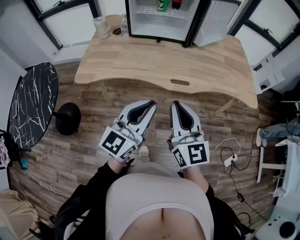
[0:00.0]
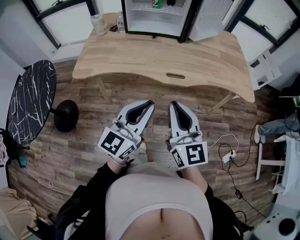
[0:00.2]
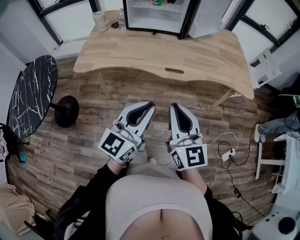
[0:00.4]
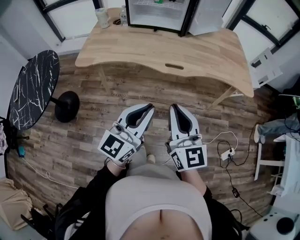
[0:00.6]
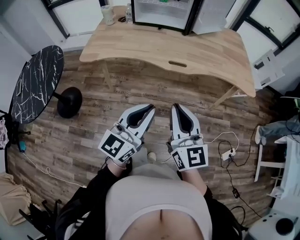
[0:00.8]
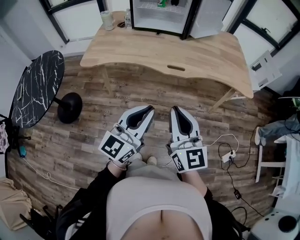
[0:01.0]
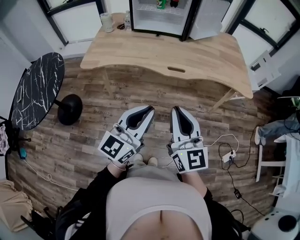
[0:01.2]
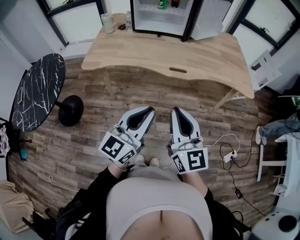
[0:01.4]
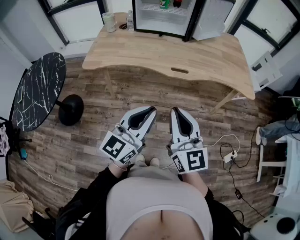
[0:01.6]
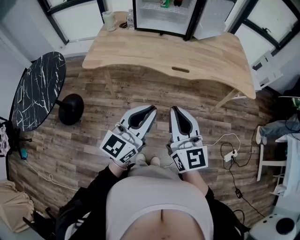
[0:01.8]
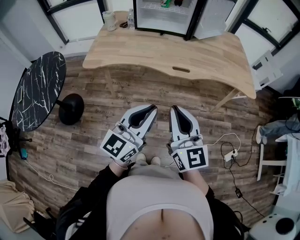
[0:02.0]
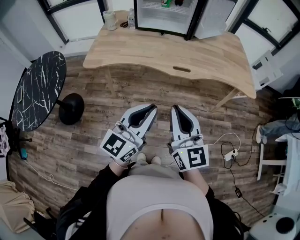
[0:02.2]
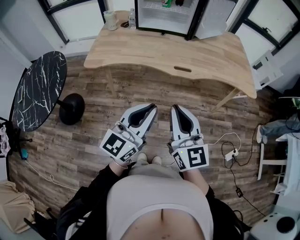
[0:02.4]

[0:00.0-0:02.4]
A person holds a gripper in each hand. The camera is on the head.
0:00.0 to 0:01.2: The grippers both shift backward by roughly 15 cm.
0:01.2 to 0:02.4: There are only small adjustments of the grippers.

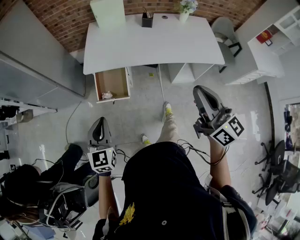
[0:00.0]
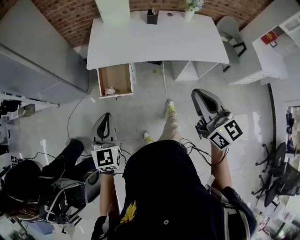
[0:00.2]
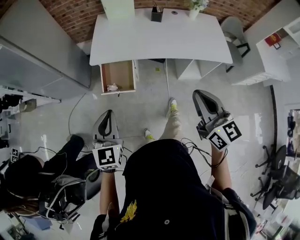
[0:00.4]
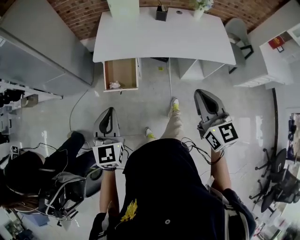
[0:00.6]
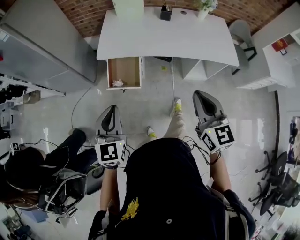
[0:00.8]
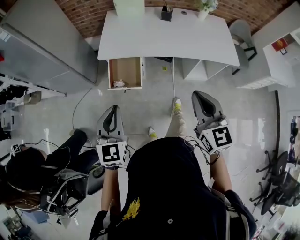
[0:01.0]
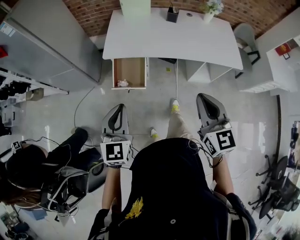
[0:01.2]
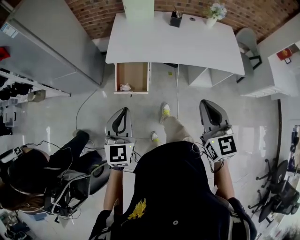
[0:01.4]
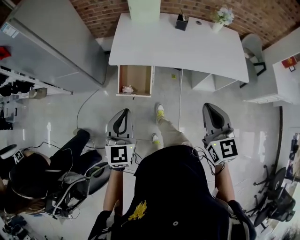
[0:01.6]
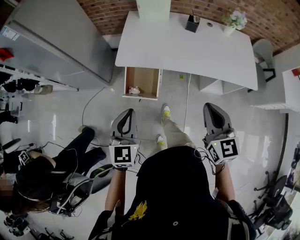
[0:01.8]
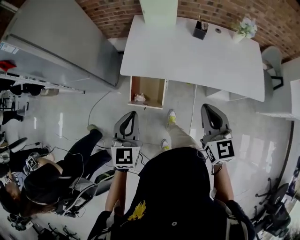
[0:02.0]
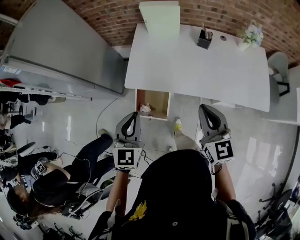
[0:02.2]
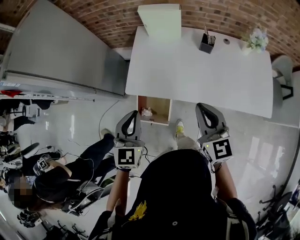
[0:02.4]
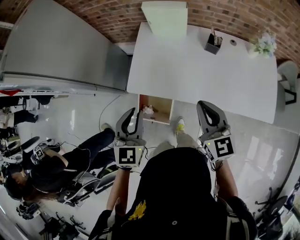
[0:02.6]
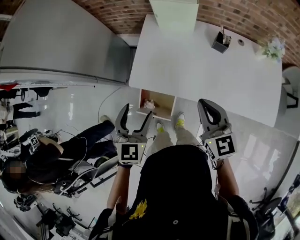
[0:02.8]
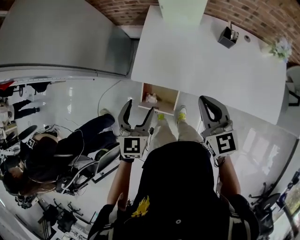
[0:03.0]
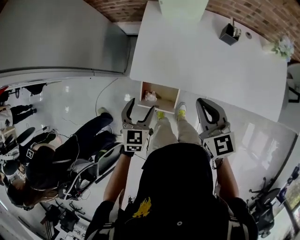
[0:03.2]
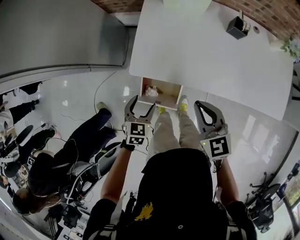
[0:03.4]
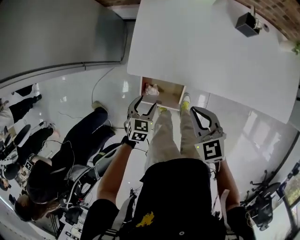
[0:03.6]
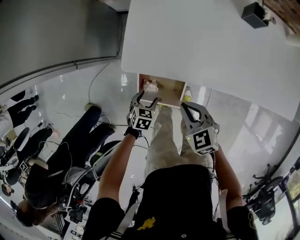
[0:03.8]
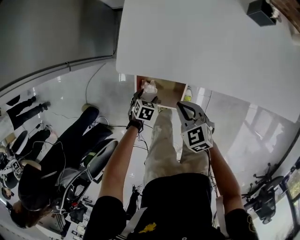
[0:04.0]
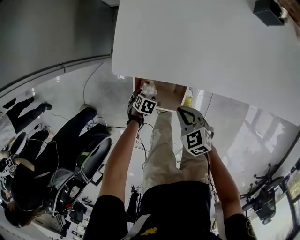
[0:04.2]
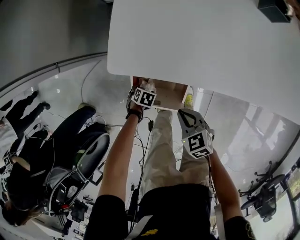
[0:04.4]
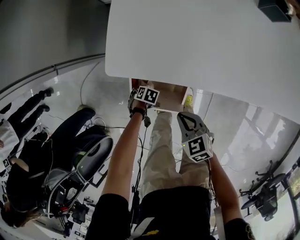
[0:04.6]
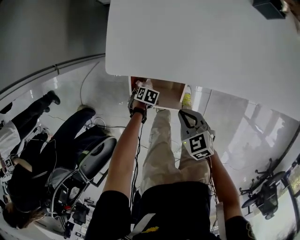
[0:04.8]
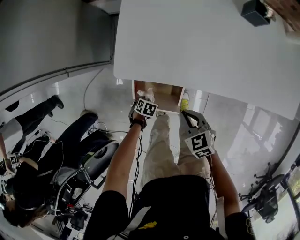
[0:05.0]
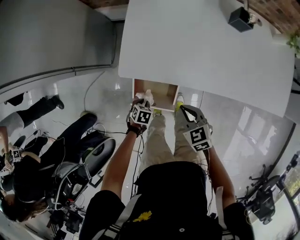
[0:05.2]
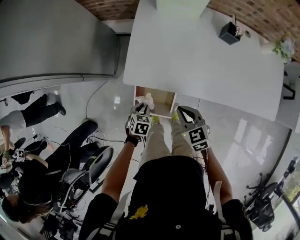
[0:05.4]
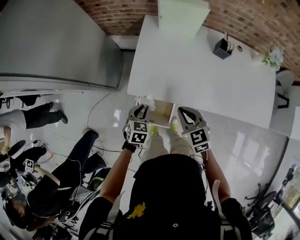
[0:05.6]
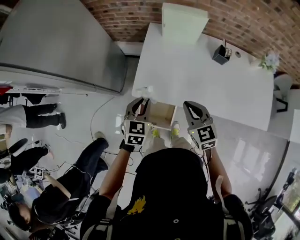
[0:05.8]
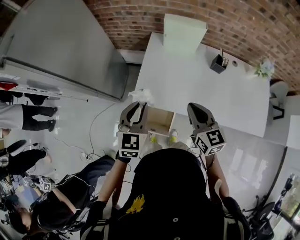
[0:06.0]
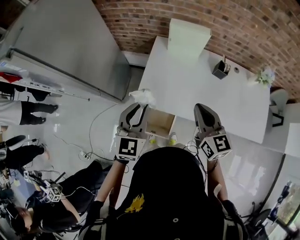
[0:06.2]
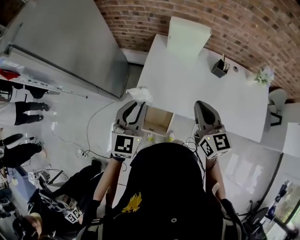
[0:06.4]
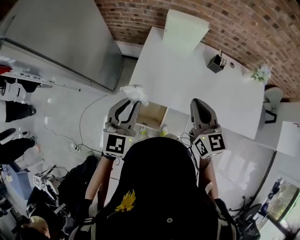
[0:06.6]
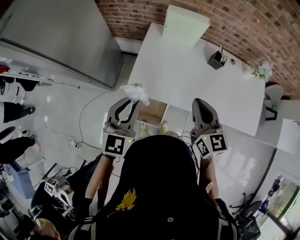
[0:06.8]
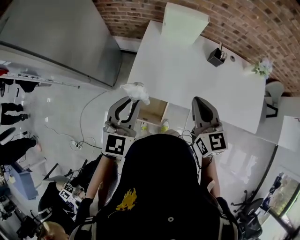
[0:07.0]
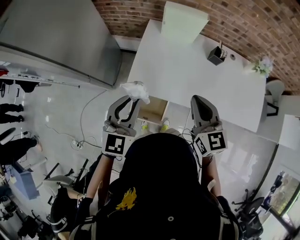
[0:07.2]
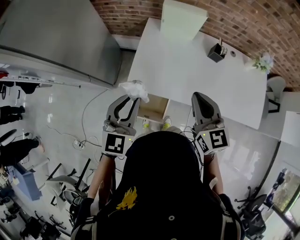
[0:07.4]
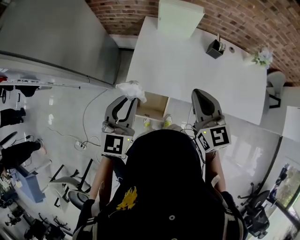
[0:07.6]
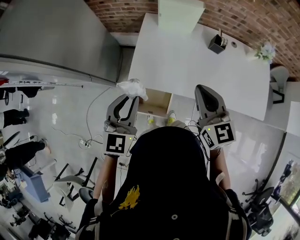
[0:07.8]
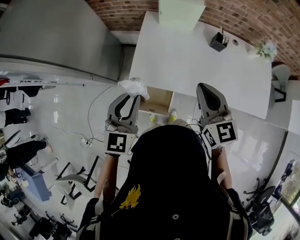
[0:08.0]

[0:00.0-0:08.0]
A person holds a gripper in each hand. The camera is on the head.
0:00.0 to 0:01.6: The right gripper moves downward, some 5 cm, and turns by some 30 degrees.
0:01.6 to 0:03.2: The right gripper heads forward, covering roughly 35 cm, and changes its angle by approximately 20 degrees. Meanwhile the left gripper moves forward and downward, approximately 30 cm, changes its angle by roughly 20 degrees, and opens up.
0:03.2 to 0:04.8: The grippers both shift downward by some 50 cm. The right gripper rotates approximately 30 degrees, while the left gripper points its fingers approximately 50 degrees further downward, and closes its fingers.
0:04.8 to 0:06.4: The left gripper travels upward by some 70 cm, and angles its fingers upward, by approximately 70 degrees, while the right gripper heads upward, covering approximately 40 cm, and angles its fingers upward, by about 40 degrees.
0:06.4 to 0:08.0: The grippers move only a little.

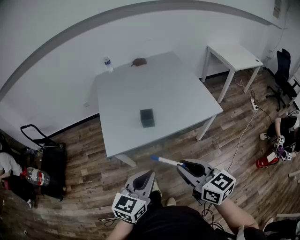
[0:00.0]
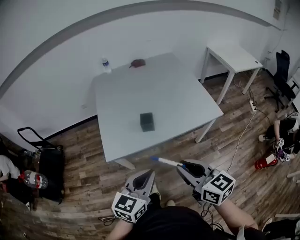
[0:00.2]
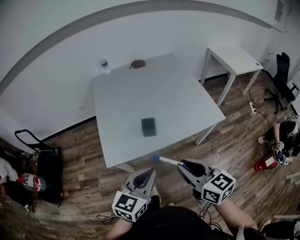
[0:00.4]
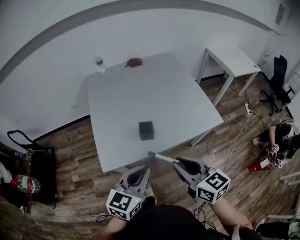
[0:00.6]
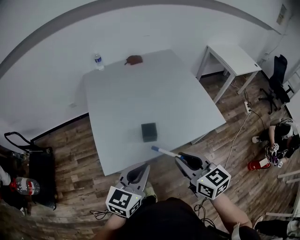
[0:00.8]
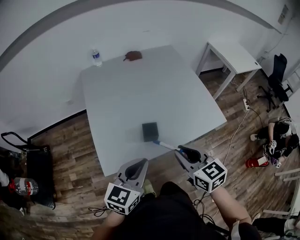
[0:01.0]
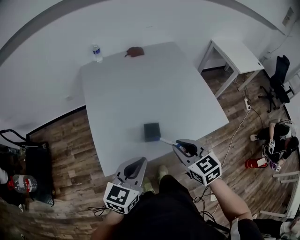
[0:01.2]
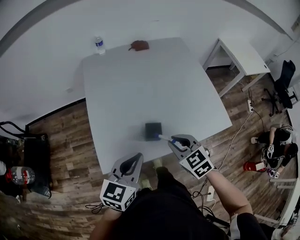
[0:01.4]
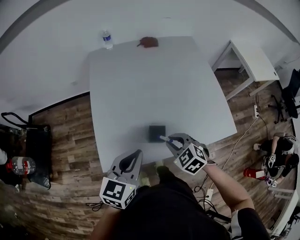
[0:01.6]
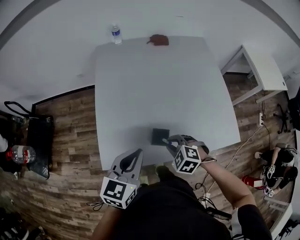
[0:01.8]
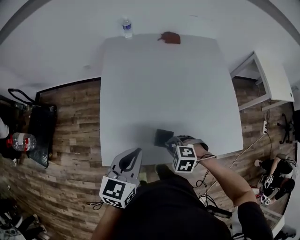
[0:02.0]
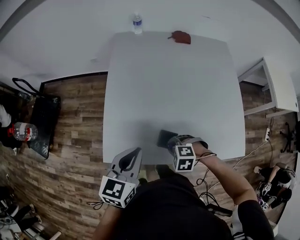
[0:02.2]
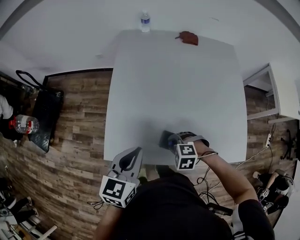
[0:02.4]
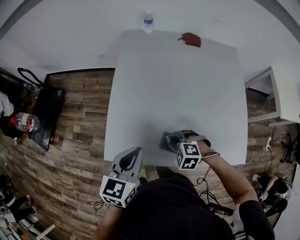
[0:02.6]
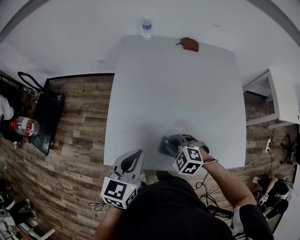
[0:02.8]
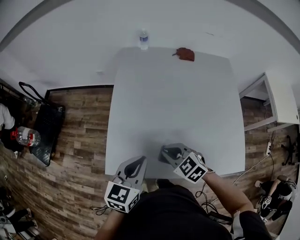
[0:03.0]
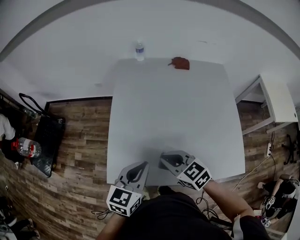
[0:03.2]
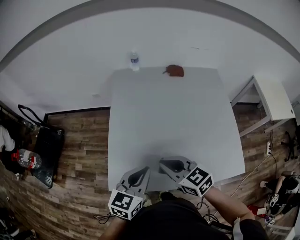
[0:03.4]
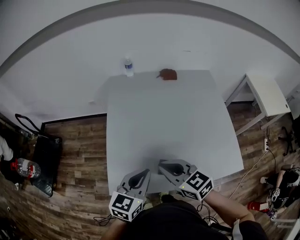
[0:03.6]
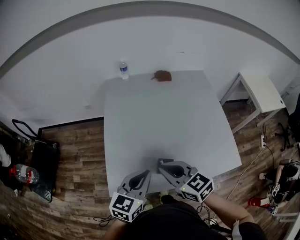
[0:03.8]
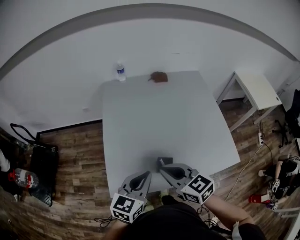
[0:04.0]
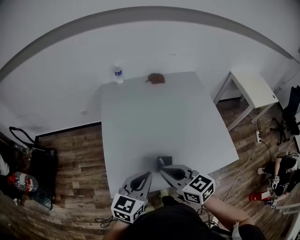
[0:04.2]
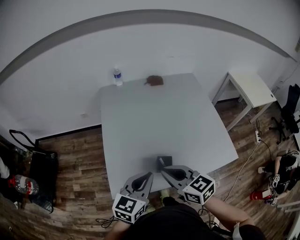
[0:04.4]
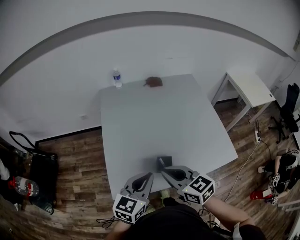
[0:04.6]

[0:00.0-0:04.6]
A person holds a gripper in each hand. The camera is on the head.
0:00.0 to 0:01.6: The left gripper shifts roughly 25 cm forward, while the right gripper shifts about 35 cm forward and downward, and tilts its fingers roughly 40 degrees downward.
0:01.6 to 0:03.0: The left gripper moves some 5 cm. The right gripper goes downward and returns, approximately 10 cm each way, and turns by some 20 degrees.
0:03.0 to 0:04.6: The left gripper moves some 5 cm, and swivels some 20 degrees. Meanwhile the right gripper is displaced upward and backward by roughly 15 cm, and swivels approximately 40 degrees.

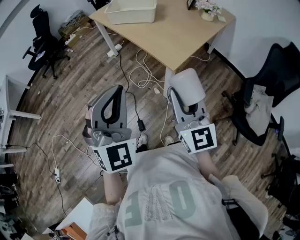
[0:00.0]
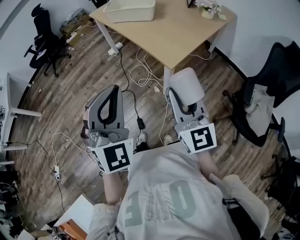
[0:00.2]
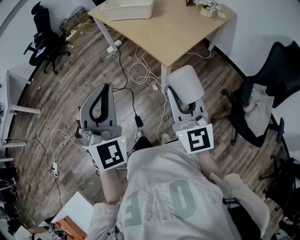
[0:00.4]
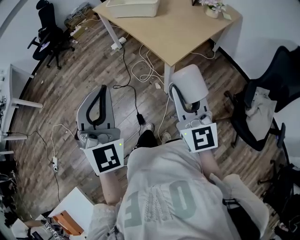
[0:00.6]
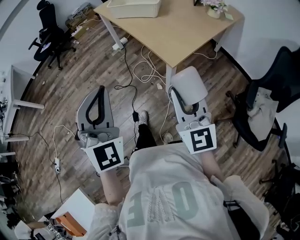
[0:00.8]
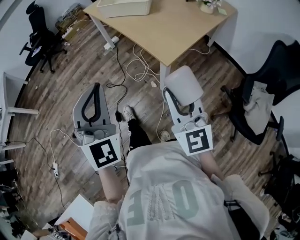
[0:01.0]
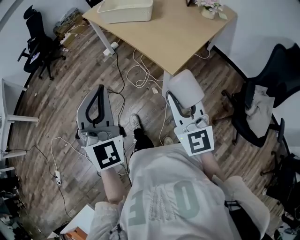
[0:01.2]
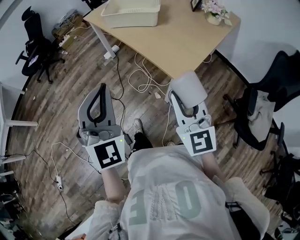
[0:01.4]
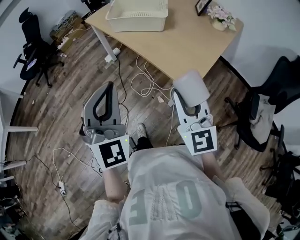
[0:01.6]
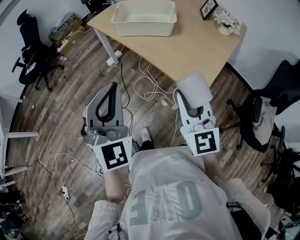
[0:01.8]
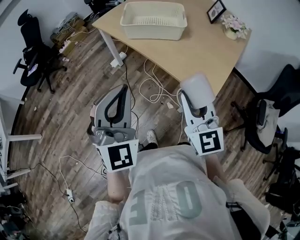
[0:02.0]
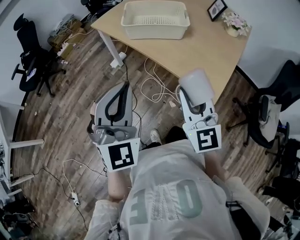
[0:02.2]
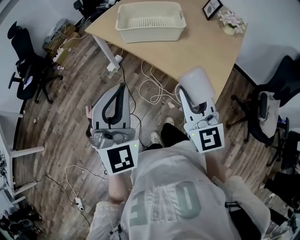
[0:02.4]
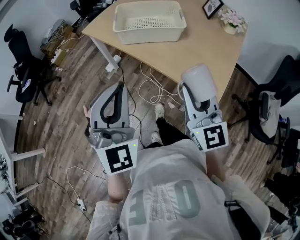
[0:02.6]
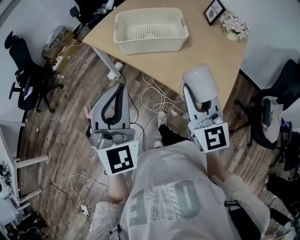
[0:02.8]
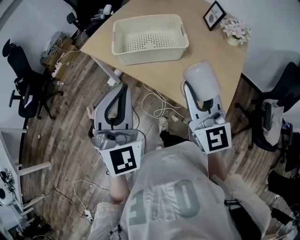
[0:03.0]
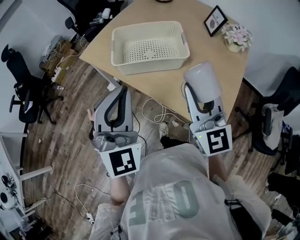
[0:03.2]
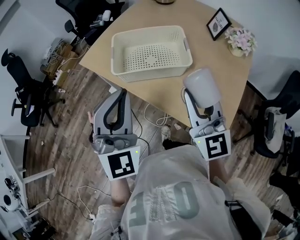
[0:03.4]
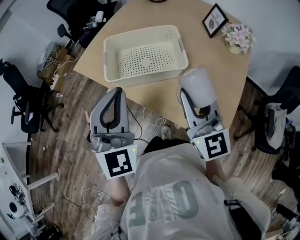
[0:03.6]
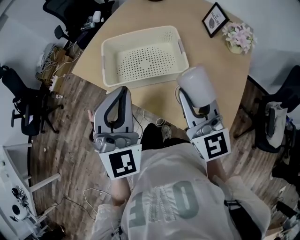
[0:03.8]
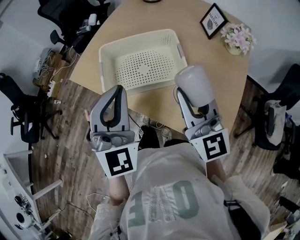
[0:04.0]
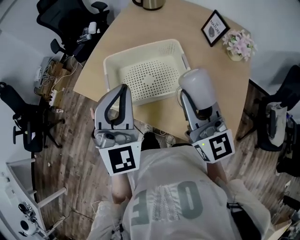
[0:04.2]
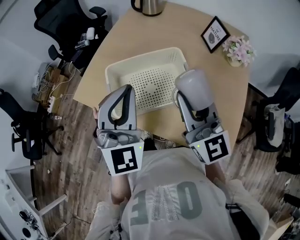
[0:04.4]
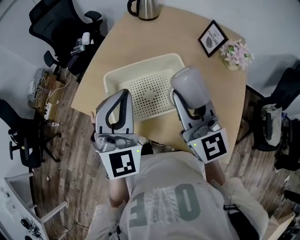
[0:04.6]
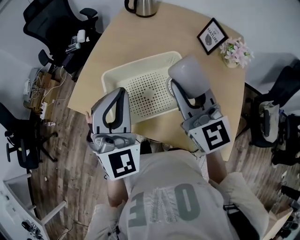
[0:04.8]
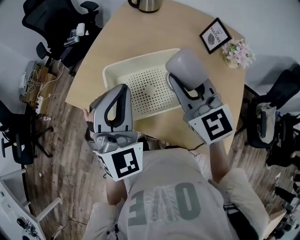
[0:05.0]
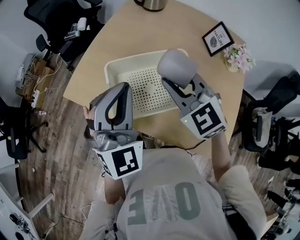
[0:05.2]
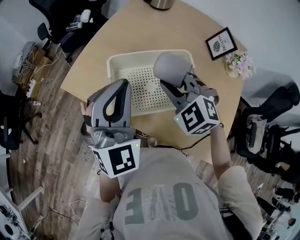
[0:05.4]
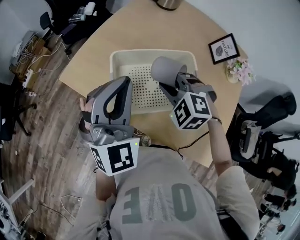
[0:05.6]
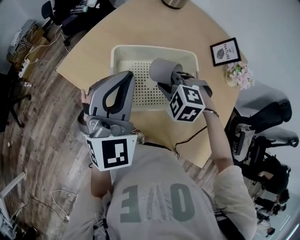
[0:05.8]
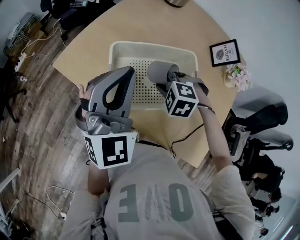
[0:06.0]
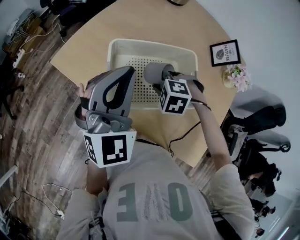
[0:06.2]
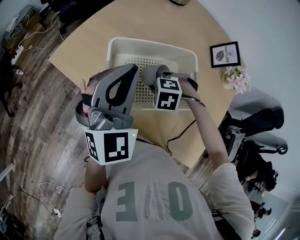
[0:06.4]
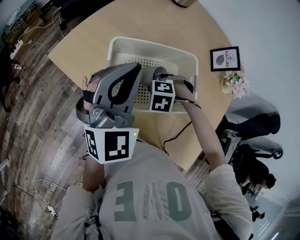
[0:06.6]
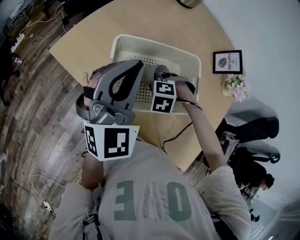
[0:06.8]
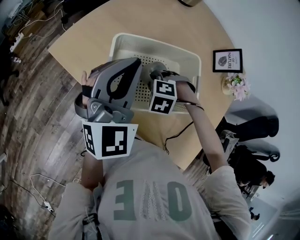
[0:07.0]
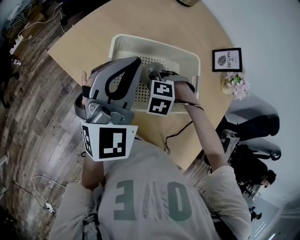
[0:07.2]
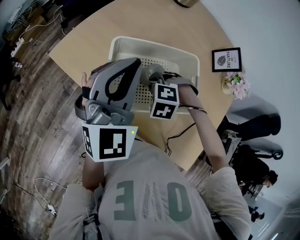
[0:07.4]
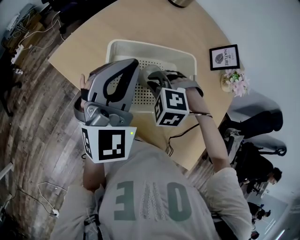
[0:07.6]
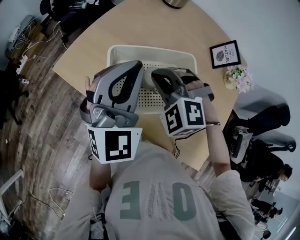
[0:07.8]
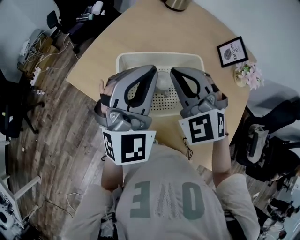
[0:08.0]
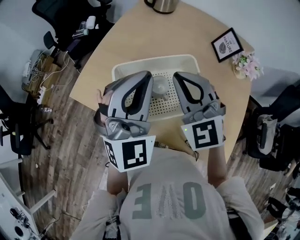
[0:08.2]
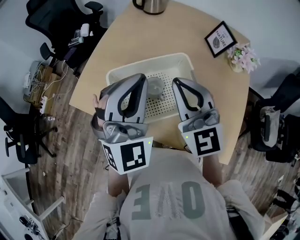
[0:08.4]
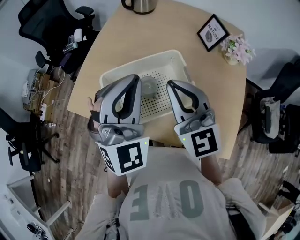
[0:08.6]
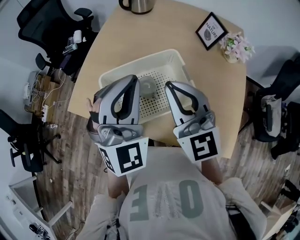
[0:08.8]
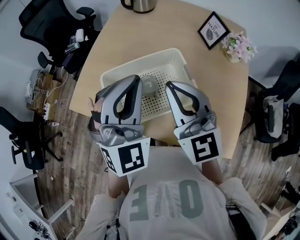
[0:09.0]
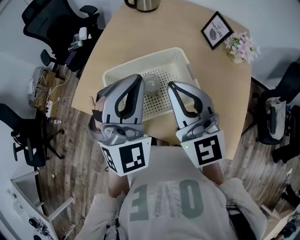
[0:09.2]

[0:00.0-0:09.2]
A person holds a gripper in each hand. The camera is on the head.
0:00.0 to 0:01.6: The right gripper shifts approximately 15 cm forward. The left gripper is displaced forward and to the left by approximately 20 cm.
0:01.6 to 0:03.0: Both grippers move forward, roughly 25 cm.
0:03.0 to 0:04.6: Both grippers move forward, about 25 cm.
0:04.6 to 0:06.2: The left gripper moves approximately 10 cm, while the right gripper is displaced downward by approximately 25 cm, and points its fingers approximately 80 degrees further downward.
0:06.2 to 0:07.6: The right gripper shifts by some 5 cm.
0:07.6 to 0:09.2: The right gripper heads upward, covering roughly 25 cm, and points its fingers approximately 70 degrees further upward; the left gripper is displaced to the right and upward by about 10 cm, and changes its angle by roughly 20 degrees.
